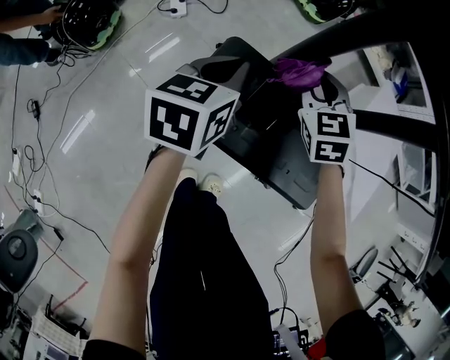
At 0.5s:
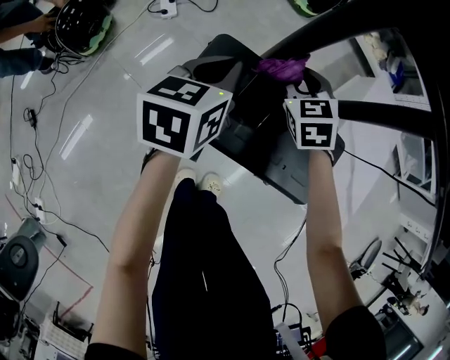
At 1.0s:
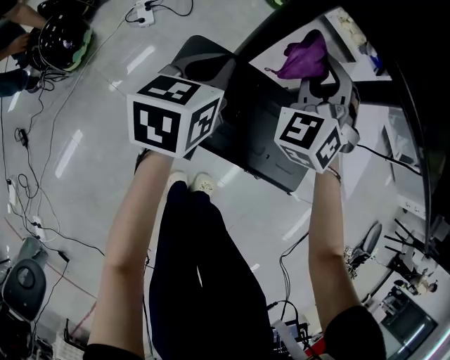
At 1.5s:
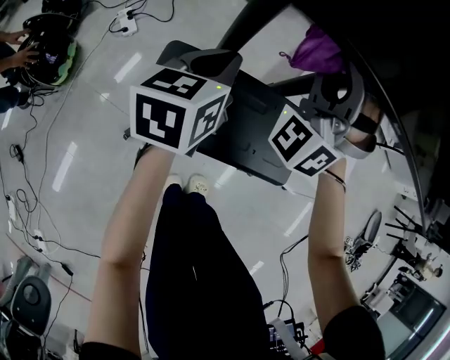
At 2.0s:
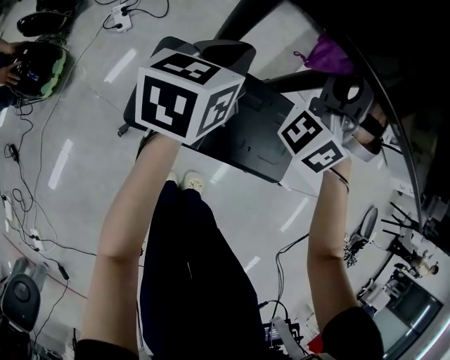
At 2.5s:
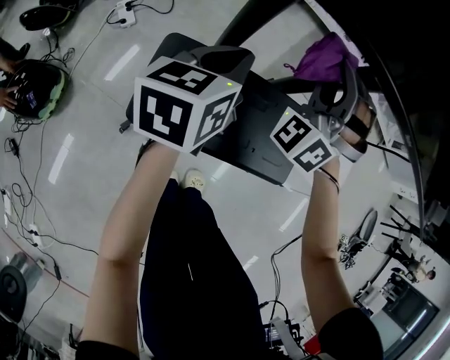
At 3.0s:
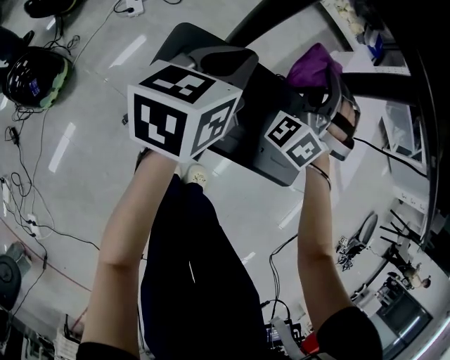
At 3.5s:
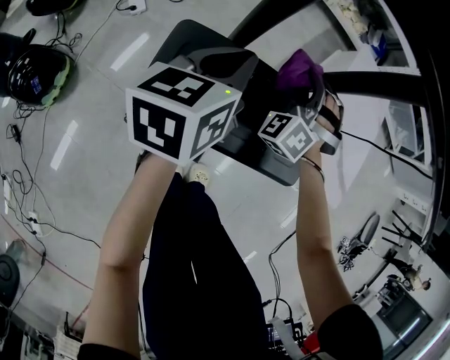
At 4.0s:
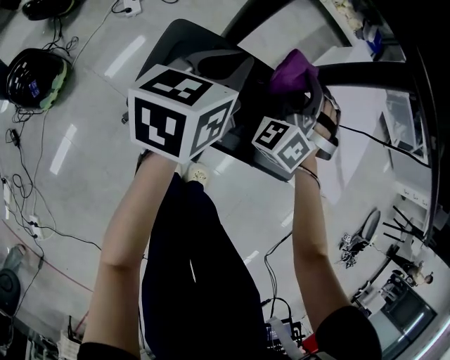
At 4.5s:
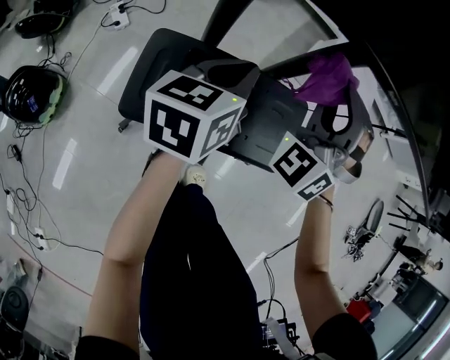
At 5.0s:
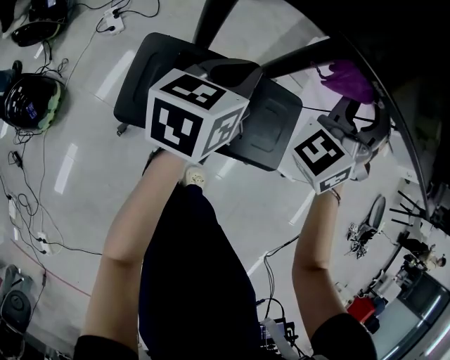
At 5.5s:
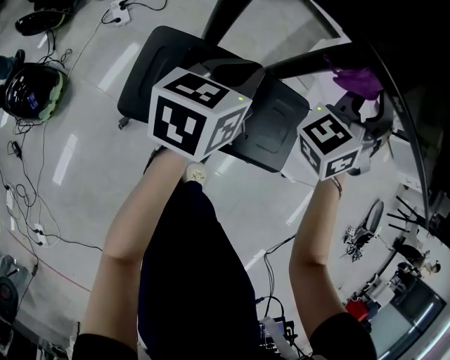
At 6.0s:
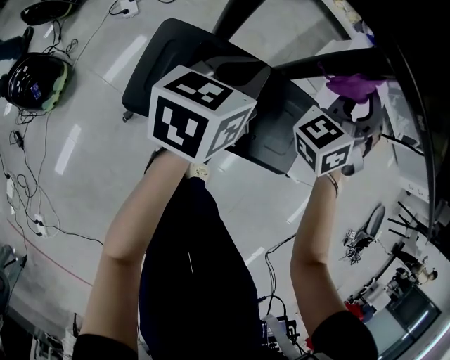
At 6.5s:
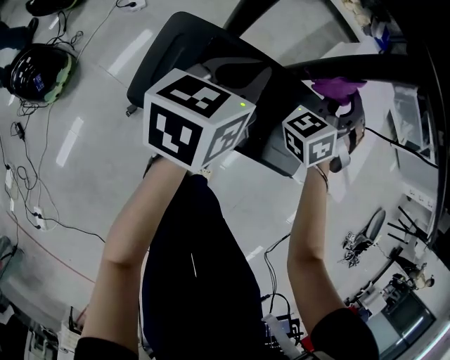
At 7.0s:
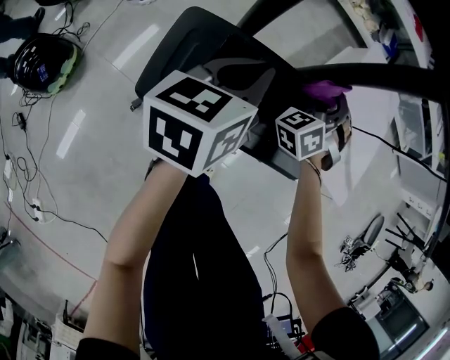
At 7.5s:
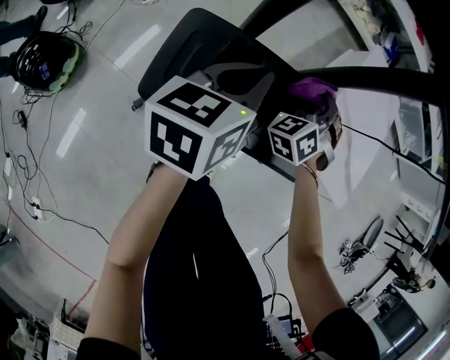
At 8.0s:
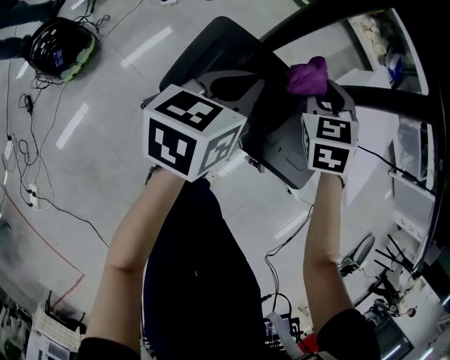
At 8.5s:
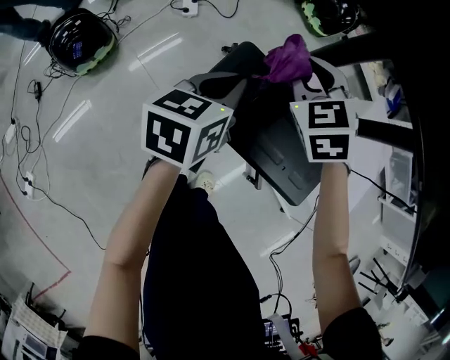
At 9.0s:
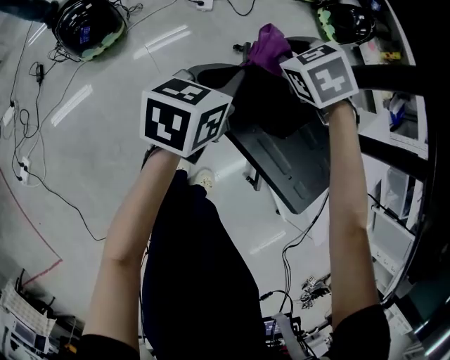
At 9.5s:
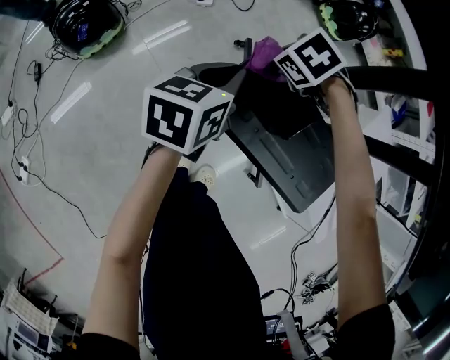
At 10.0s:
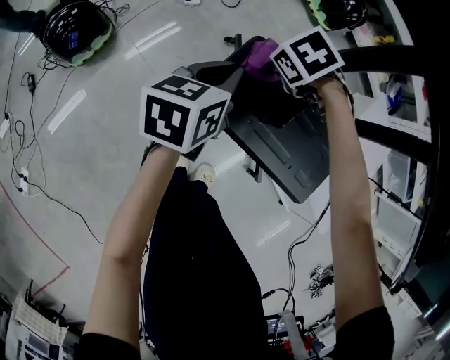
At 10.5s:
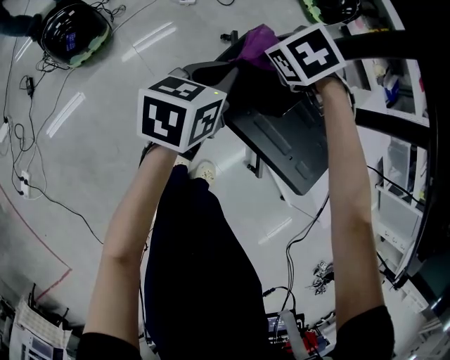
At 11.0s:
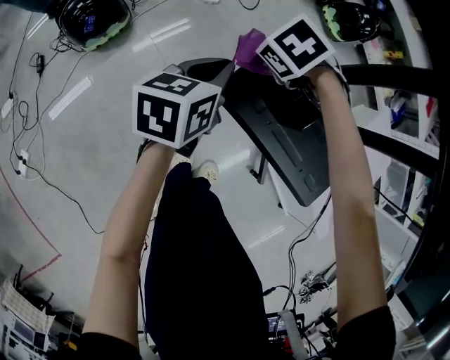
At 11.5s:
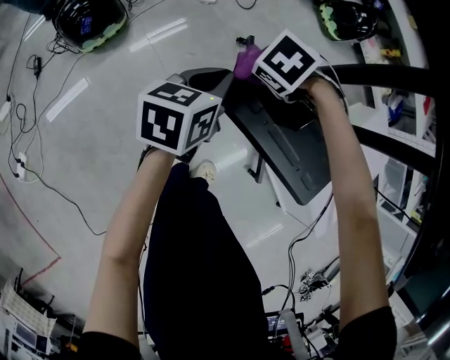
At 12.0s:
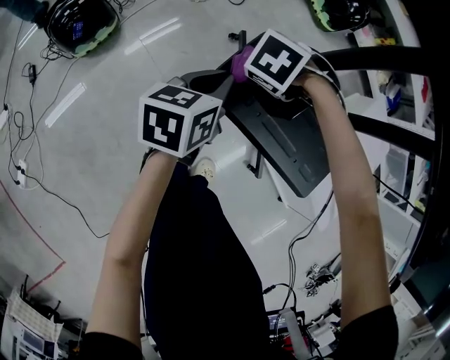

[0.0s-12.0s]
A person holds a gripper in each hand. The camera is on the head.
0.0s to 2.0s: The left gripper heads to the right and upward, covering roughly 15 cm. The right gripper is displaced upward and to the right by roughly 25 cm, and tilts its fingers about 40 degrees upward.
2.0s to 4.0s: The left gripper shifts by roughly 5 cm. Meanwhile the right gripper travels downward by approximately 20 cm, and turns by some 30 degrees.
4.0s to 6.0s: The left gripper travels to the right by approximately 5 cm. Meanwhile the right gripper goes about 15 cm upward, to the right and forward, and swivels about 30 degrees.
6.0s to 8.0s: The left gripper shifts approximately 10 cm backward and to the left. The right gripper moves to the left, downward and backward, about 20 cm, and angles its fingers downward, by roughly 40 degrees.
8.0s to 10.0s: The right gripper changes place by about 20 cm, and angles its fingers downward, by roughly 40 degrees; the left gripper shifts by approximately 15 cm.
10.0s to 12.0s: The left gripper changes place by roughly 5 cm. Meanwhile the right gripper moves about 5 cm, and swivels roughly 30 degrees.

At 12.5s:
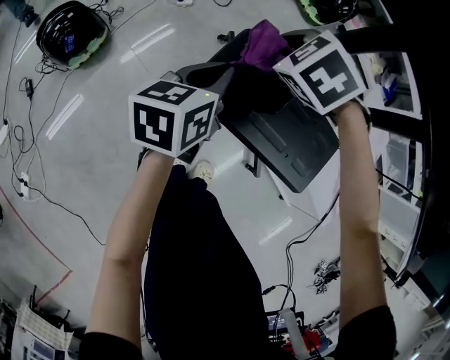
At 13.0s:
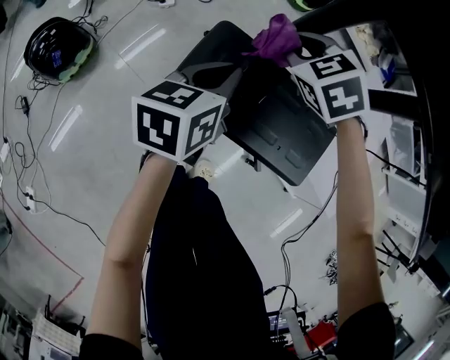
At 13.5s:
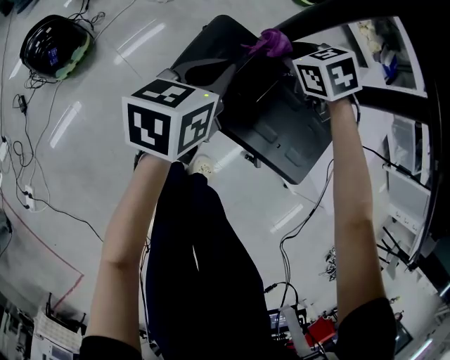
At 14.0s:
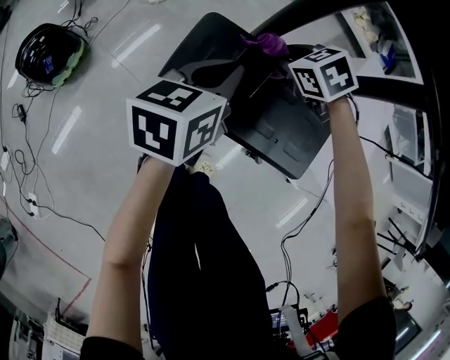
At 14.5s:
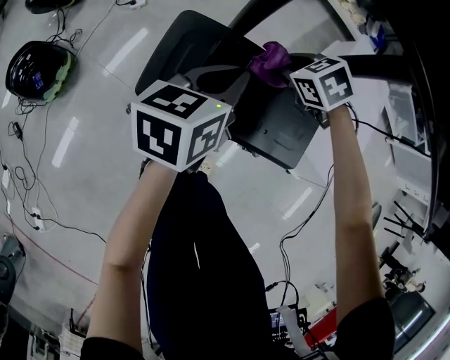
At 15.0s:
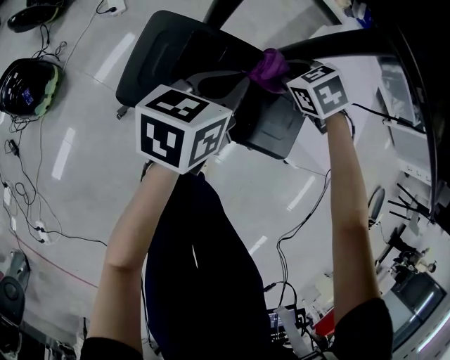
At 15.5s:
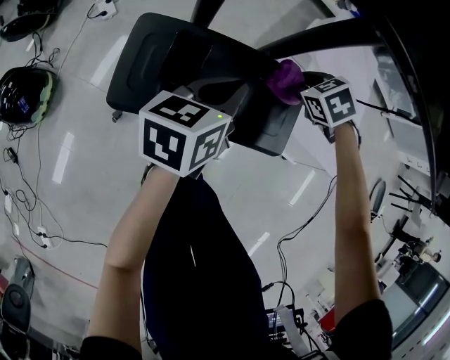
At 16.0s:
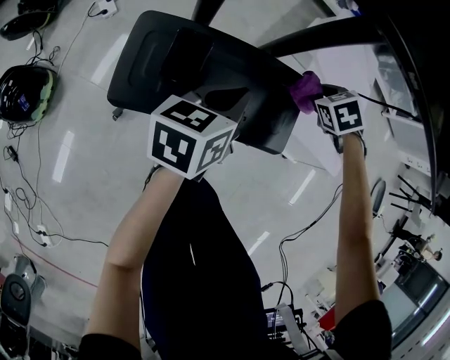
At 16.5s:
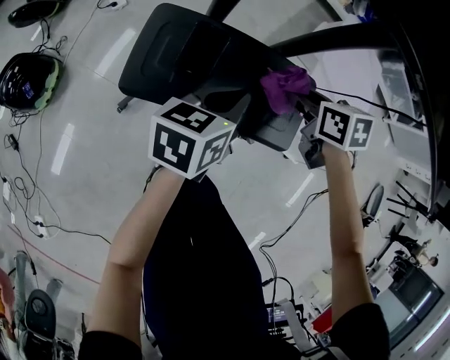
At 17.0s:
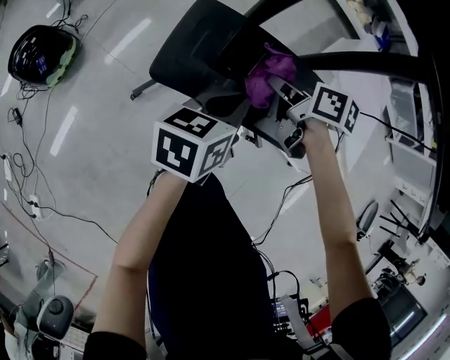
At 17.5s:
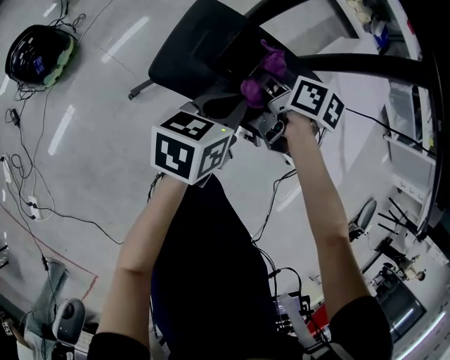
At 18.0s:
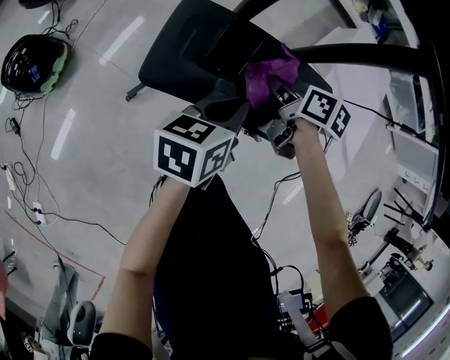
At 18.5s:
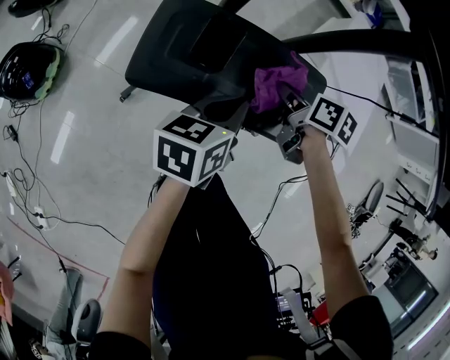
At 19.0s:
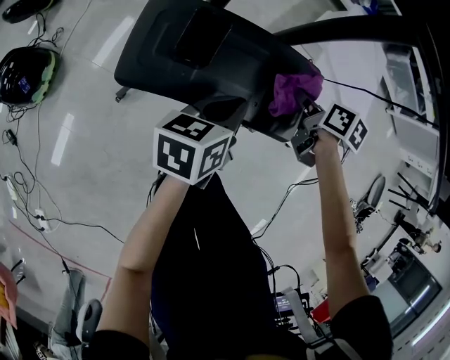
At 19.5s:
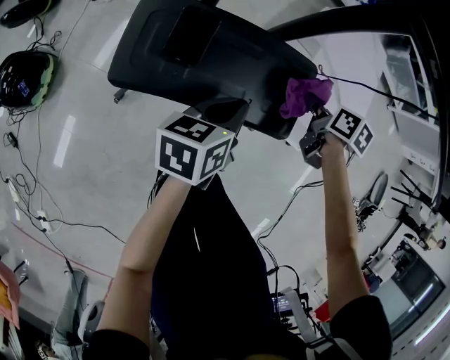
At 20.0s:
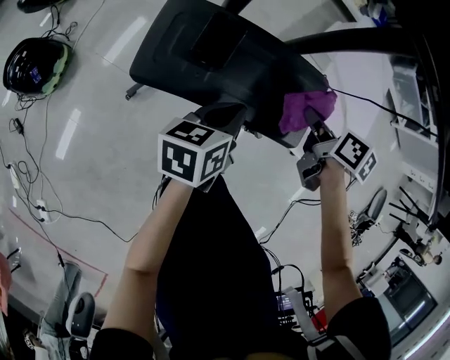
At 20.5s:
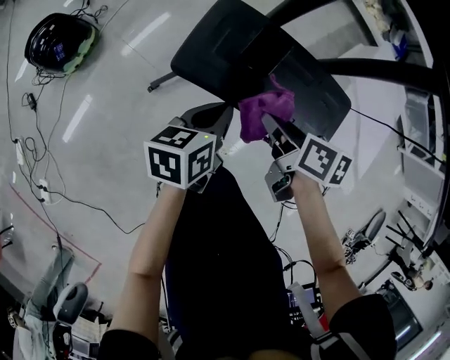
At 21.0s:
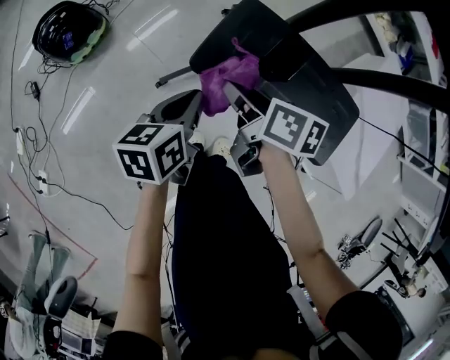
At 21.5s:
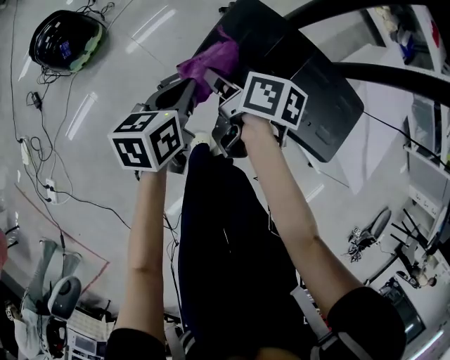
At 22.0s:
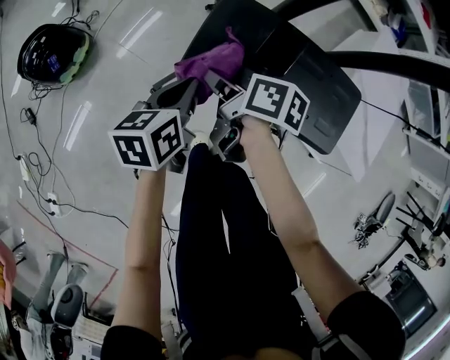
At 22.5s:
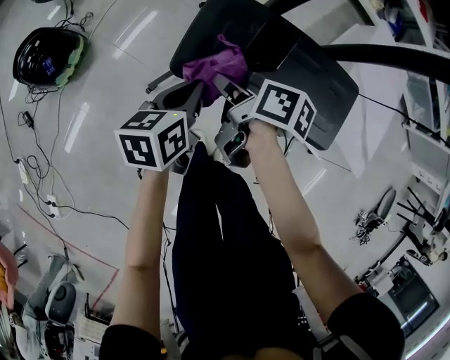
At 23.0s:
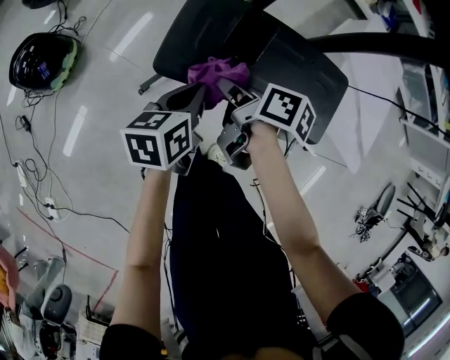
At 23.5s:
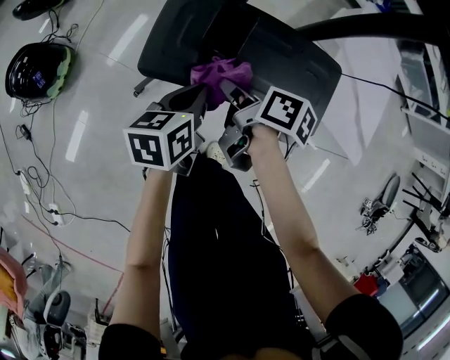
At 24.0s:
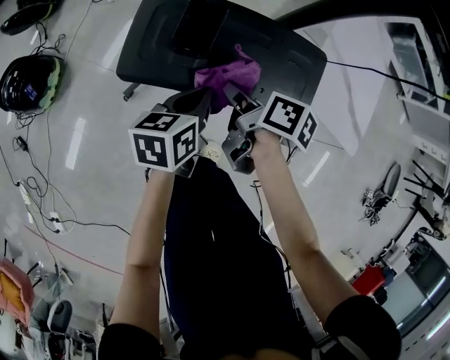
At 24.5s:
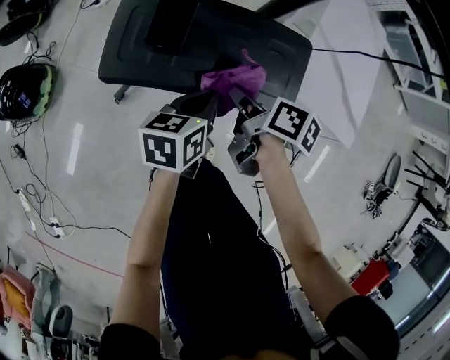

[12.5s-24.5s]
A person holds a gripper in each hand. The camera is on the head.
12.5s to 14.5s: The left gripper heads to the right, covering some 15 cm. The right gripper heads to the right and downward, covering some 25 cm, and rotates about 30 degrees.
14.5s to 16.5s: The left gripper shifts by approximately 10 cm; the right gripper twists approximately 40 degrees clockwise, seen from behind.
16.5s to 18.5s: The right gripper heads downward, covering about 5 cm, travels to the left and back again, about 15 cm each way, and rotates some 30 degrees.
18.5s to 20.5s: The left gripper moves approximately 10 cm. Meanwhile the right gripper ends up approximately 15 cm from where it was.
20.5s to 22.5s: The left gripper travels to the left and forward by approximately 10 cm. The right gripper moves to the left, forward and downward, approximately 15 cm, and rotates some 20 degrees.
22.5s to 24.5s: Both grippers travel together to the right, about 25 cm.

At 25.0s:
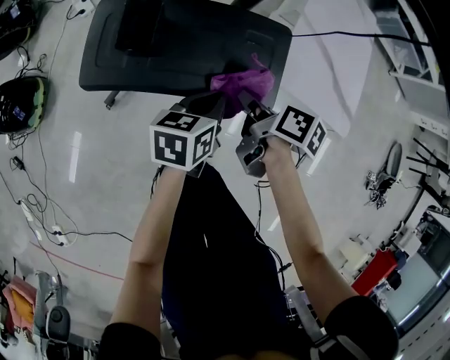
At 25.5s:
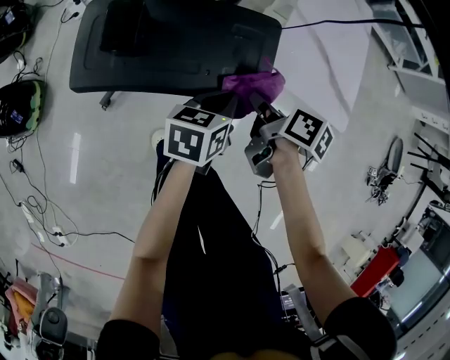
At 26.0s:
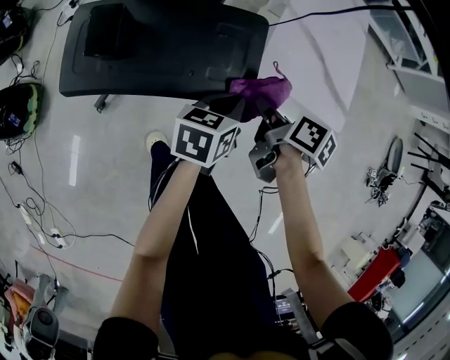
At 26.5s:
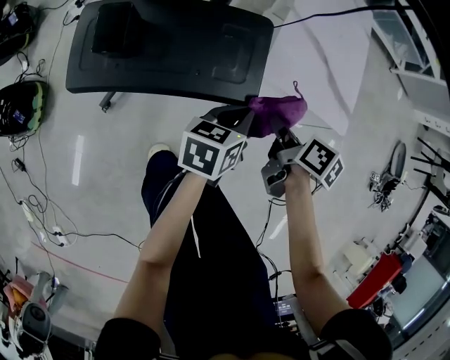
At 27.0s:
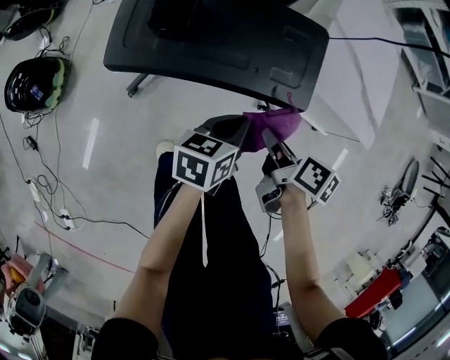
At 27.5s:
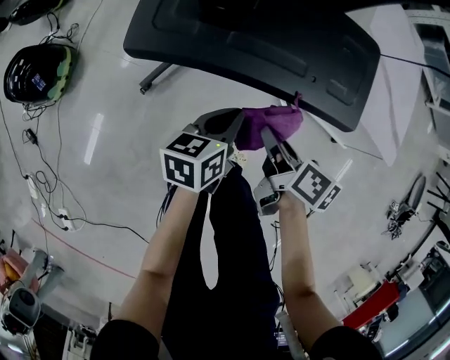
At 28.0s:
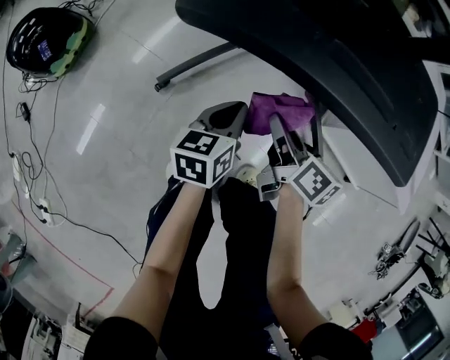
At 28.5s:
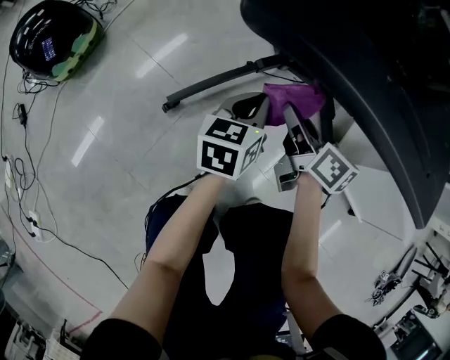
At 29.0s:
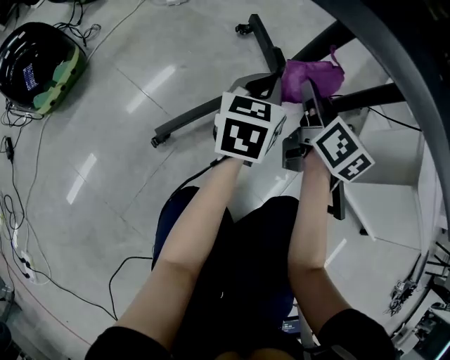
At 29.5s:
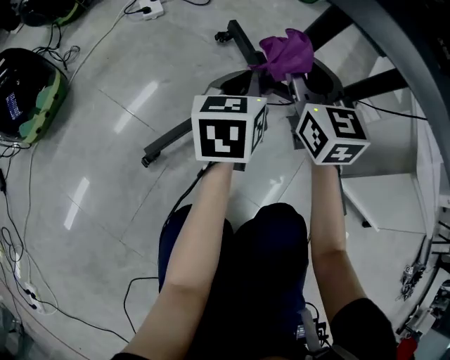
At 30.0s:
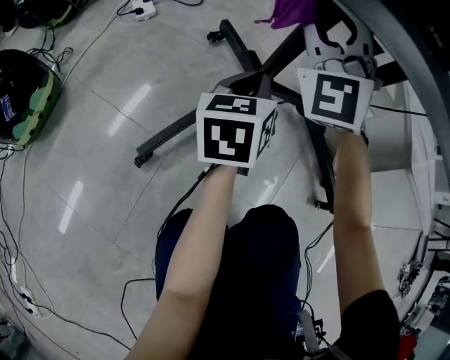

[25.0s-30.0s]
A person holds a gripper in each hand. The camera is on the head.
25.0s to 27.5s: The right gripper is displaced backward and downward by about 15 cm, and moves about 15 cm to the right and comes back, while the left gripper heads downward, to the left and backward, covering roughly 15 cm.
27.5s to 30.0s: The left gripper moves forward, downward and to the left, approximately 30 cm, and rotates roughly 30 degrees, while the right gripper goes roughly 35 cm forward and to the left, and rolls counterclockwise, seen from behind, by roughly 120 degrees.
